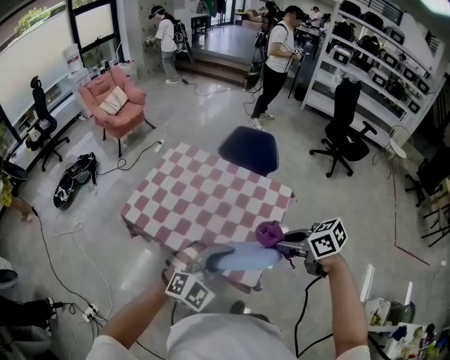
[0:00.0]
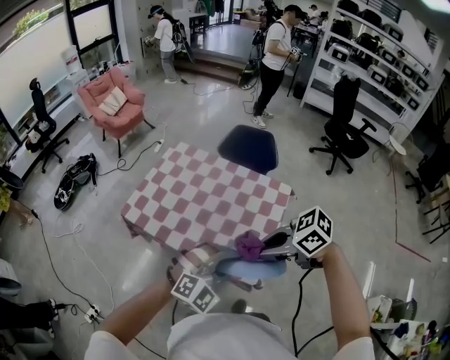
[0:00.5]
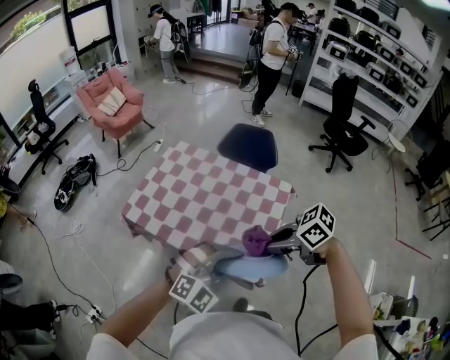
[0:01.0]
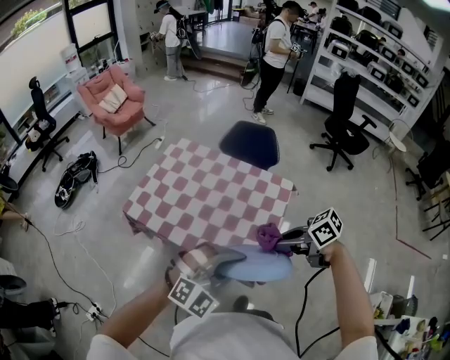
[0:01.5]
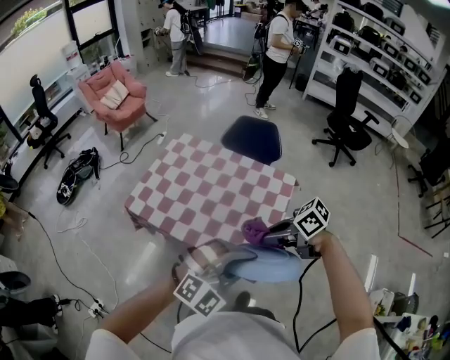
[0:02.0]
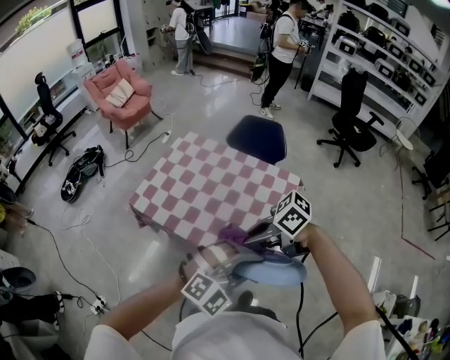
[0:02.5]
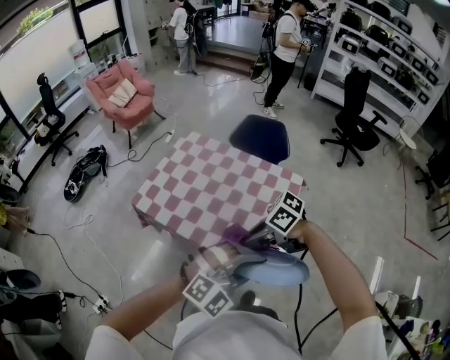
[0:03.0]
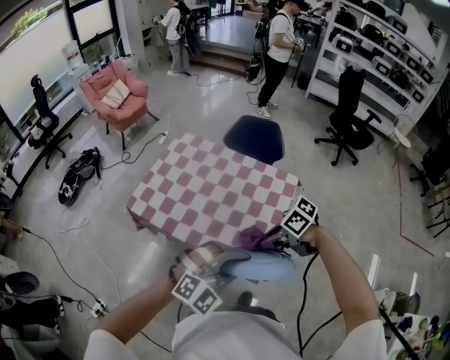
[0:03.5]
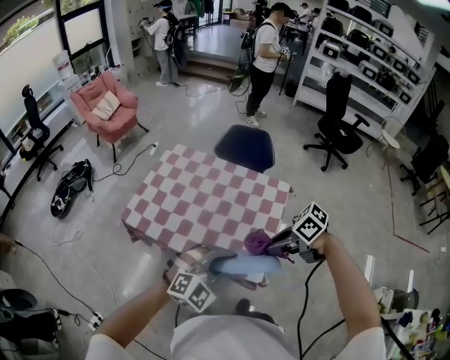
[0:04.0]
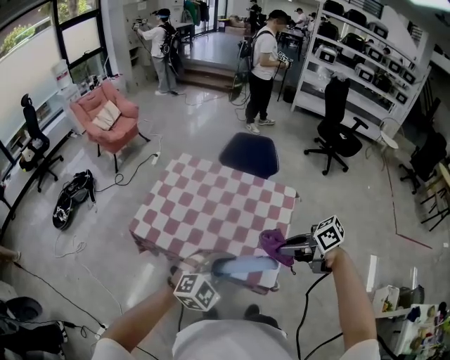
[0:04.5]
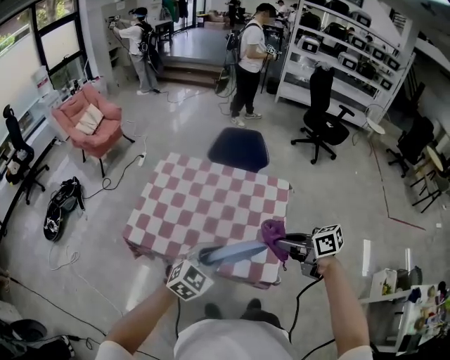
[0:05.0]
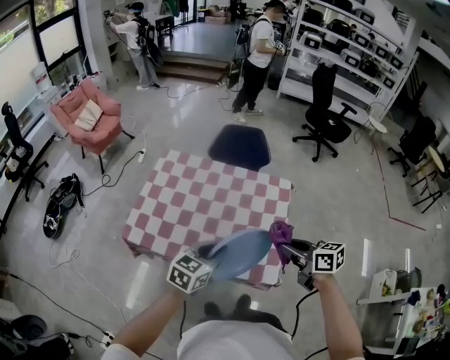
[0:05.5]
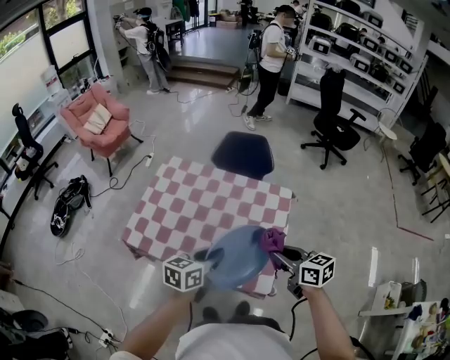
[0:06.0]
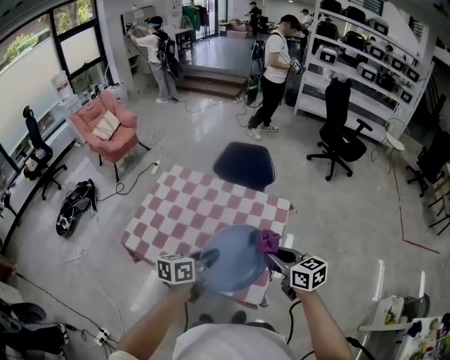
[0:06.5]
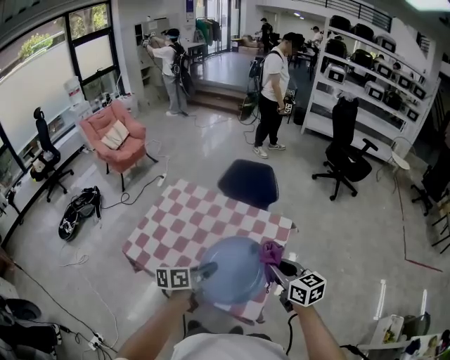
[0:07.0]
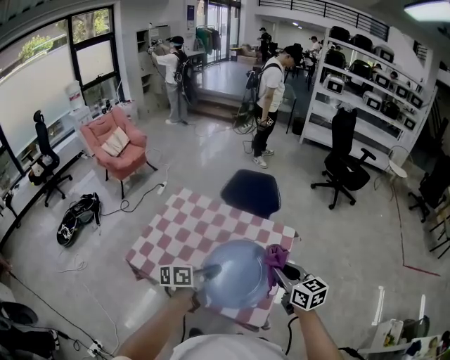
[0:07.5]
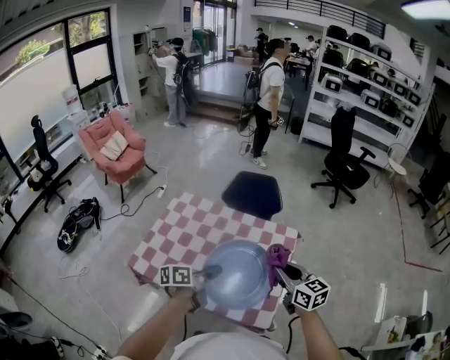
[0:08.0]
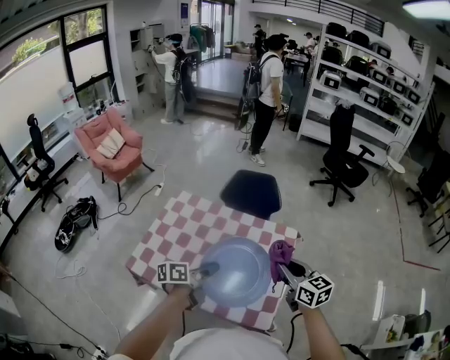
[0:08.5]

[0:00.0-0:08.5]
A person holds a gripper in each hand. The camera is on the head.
0:00.0 to 0:02.0: The right gripper moves some 5 cm, while the left gripper moves approximately 10 cm.
0:02.0 to 0:04.0: The right gripper goes downward and returns, some 5 cm each way. Meanwhile the left gripper ends up roughly 10 cm from where it was.
0:04.0 to 0:06.5: The left gripper ends up some 15 cm from where it was, and twists about 90 degrees counterclockwise, seen from behind. The right gripper shifts by roughly 10 cm, and swivels about 50 degrees.
0:06.5 to 0:08.5: The left gripper shifts about 10 cm to the left and forward, and changes its angle by approximately 20 degrees; the right gripper moves forward, about 5 cm.

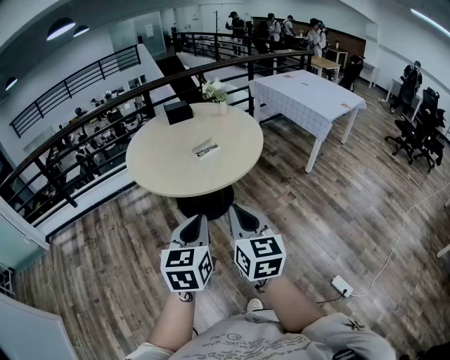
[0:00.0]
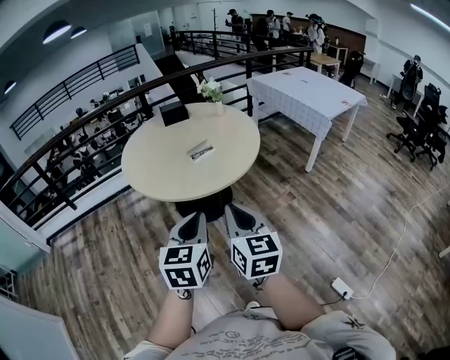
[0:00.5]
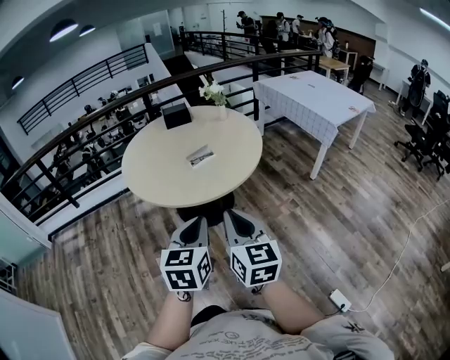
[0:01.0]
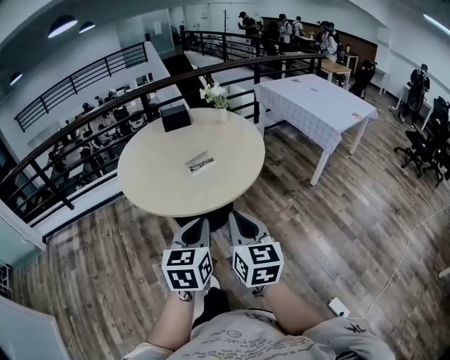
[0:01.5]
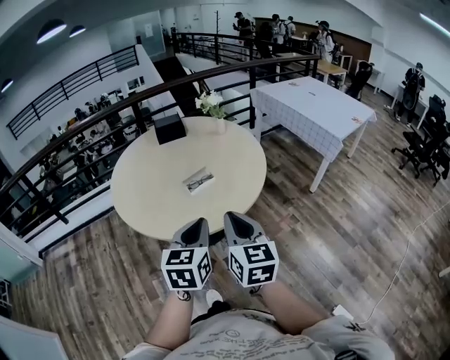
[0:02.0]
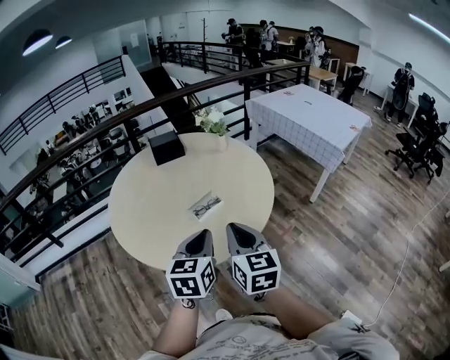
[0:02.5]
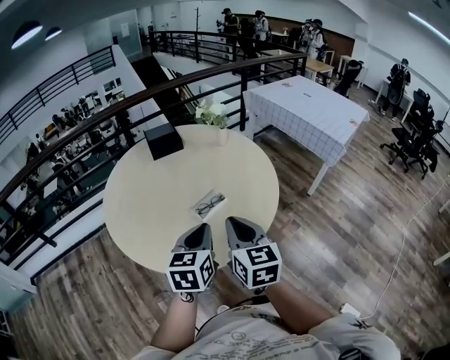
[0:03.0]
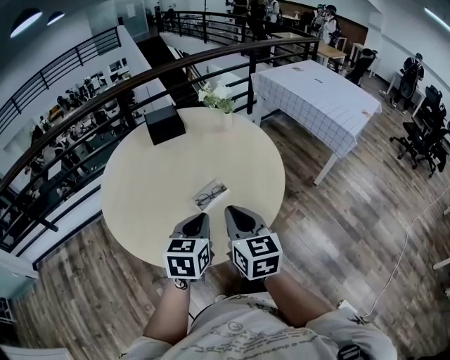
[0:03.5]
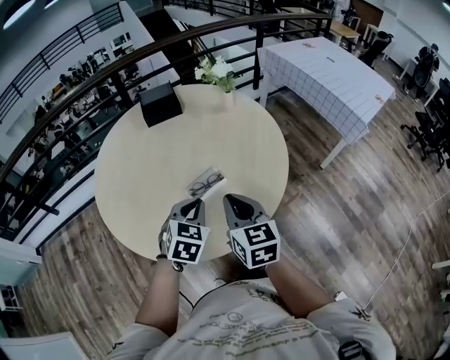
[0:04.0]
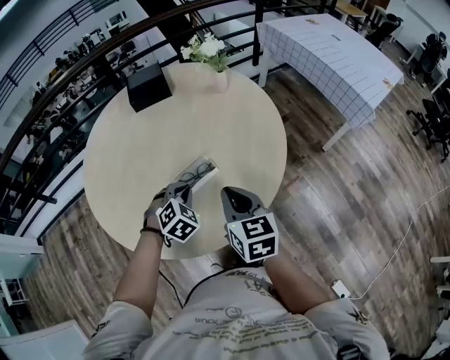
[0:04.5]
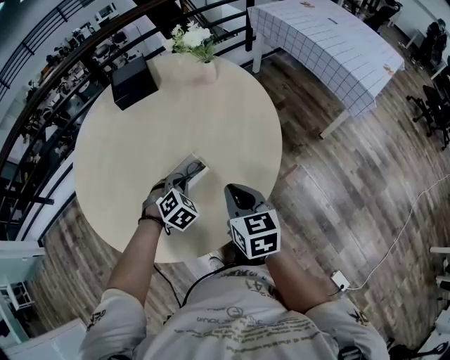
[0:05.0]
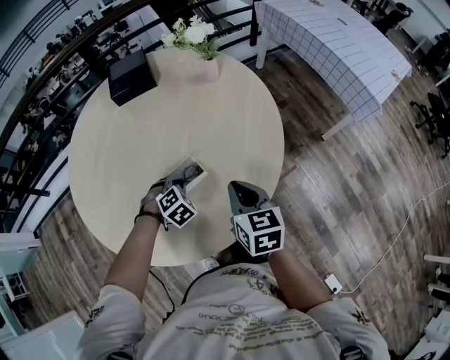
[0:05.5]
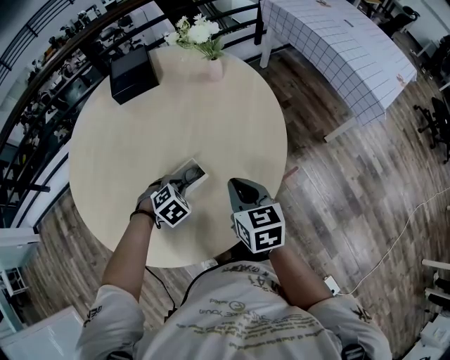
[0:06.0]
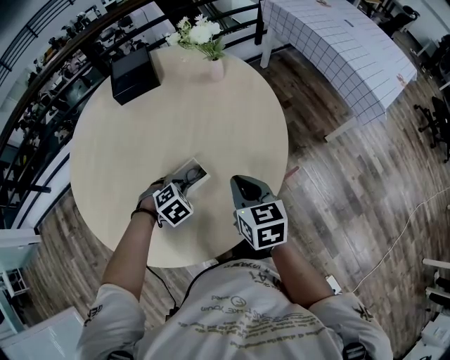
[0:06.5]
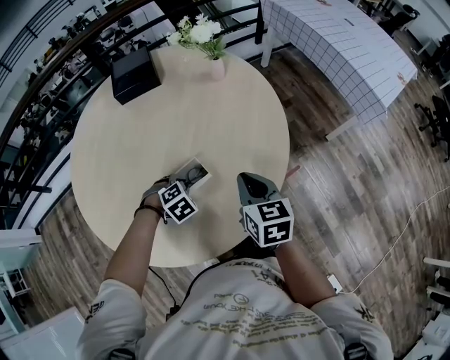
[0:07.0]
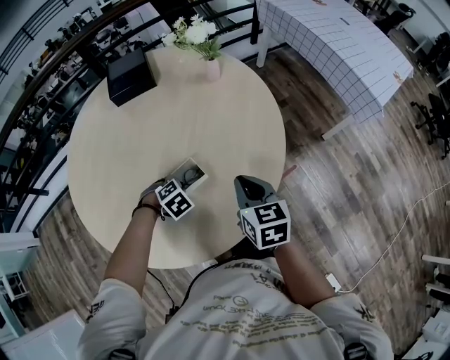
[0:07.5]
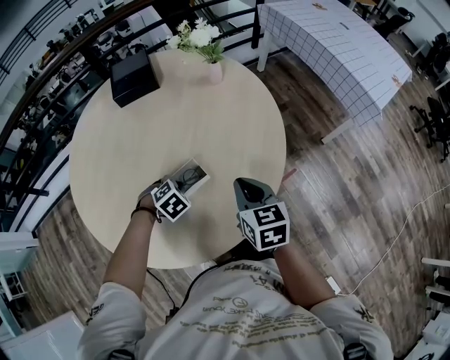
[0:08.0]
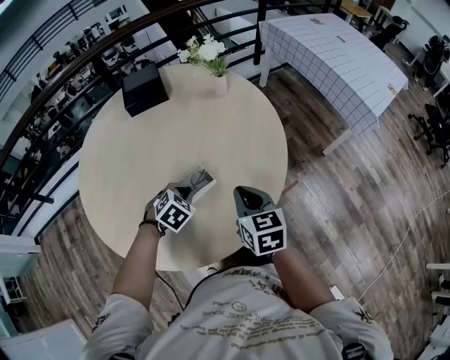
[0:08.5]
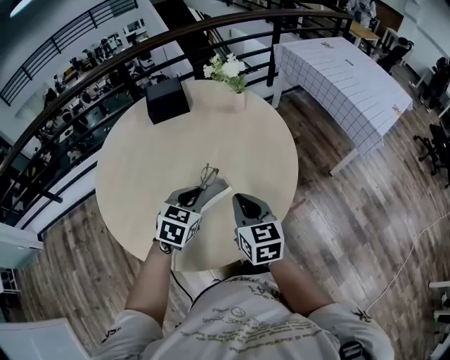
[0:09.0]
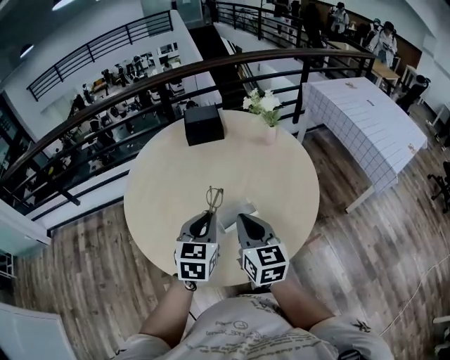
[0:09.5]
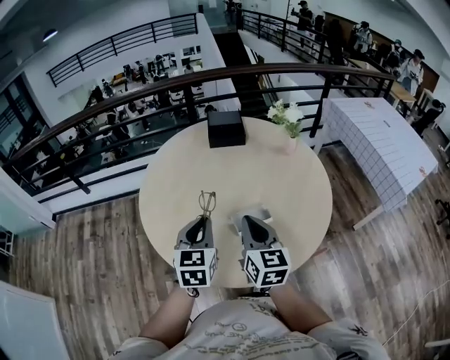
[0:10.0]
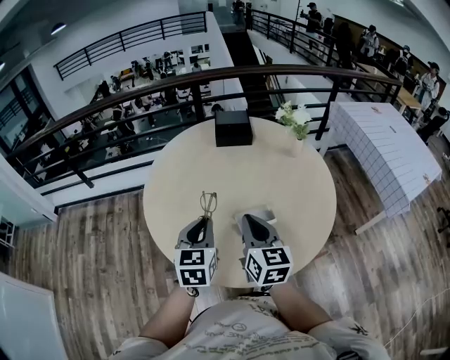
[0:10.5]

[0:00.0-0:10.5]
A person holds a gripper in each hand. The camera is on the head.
0:00.0 to 0:02.0: Both grippers move forward, approximately 25 cm.
0:02.0 to 0:04.0: The two grippers go about 25 cm forward and downward. The left gripper swivels approximately 30 degrees.
0:04.0 to 0:06.5: The right gripper shifts roughly 20 cm forward, downward and to the right. Meanwhile the left gripper goes some 20 cm downward and forward, and tips its fingers downward by approximately 30 degrees.
0:06.5 to 0:08.5: The left gripper is displaced upward by about 5 cm.
0:08.5 to 0:10.5: The left gripper goes about 25 cm upward, to the left and backward, and tips its fingers upward by approximately 40 degrees. The right gripper shifts some 20 cm to the left and upward, and turns by about 20 degrees.

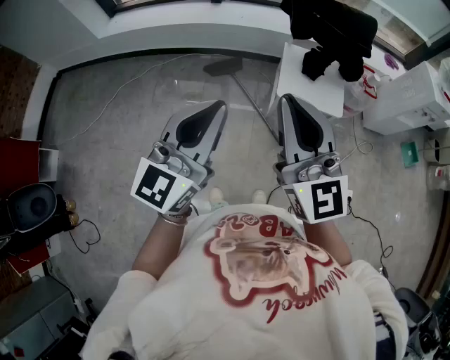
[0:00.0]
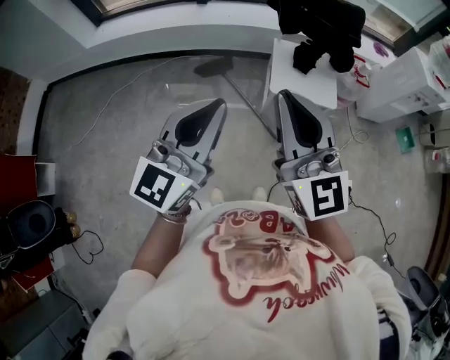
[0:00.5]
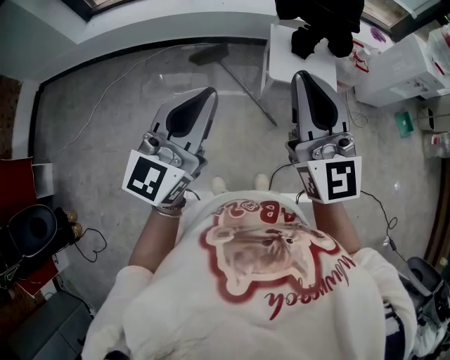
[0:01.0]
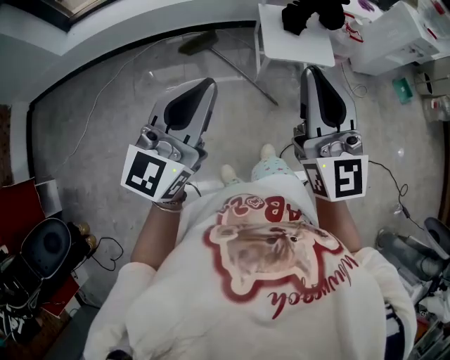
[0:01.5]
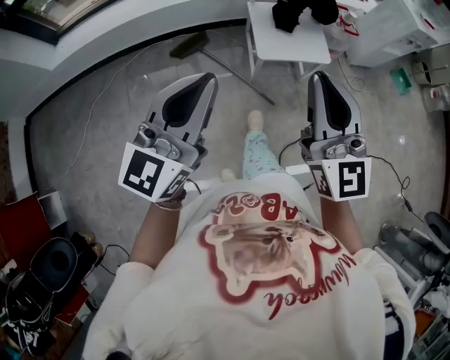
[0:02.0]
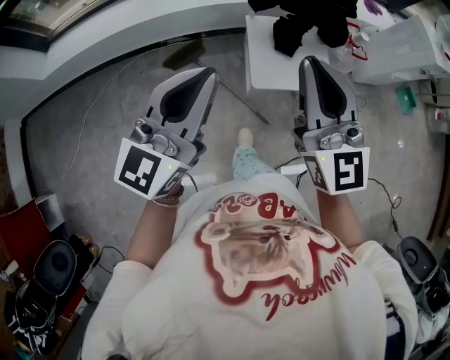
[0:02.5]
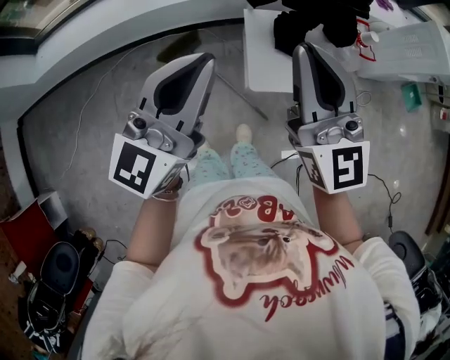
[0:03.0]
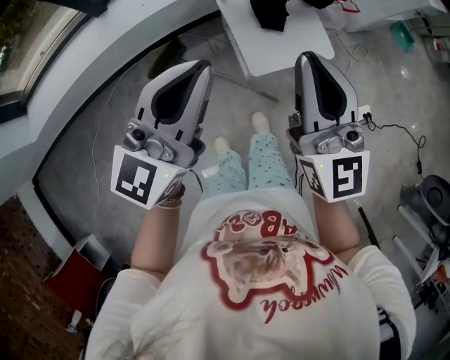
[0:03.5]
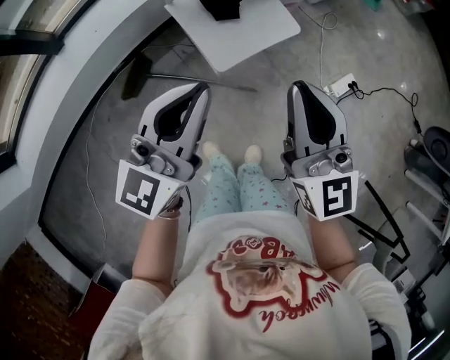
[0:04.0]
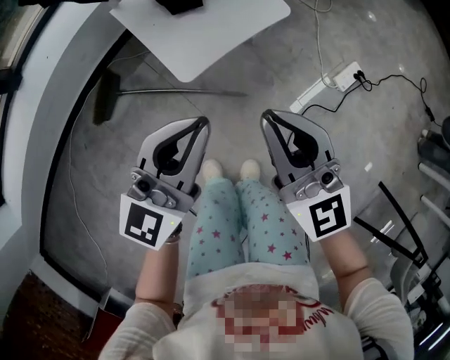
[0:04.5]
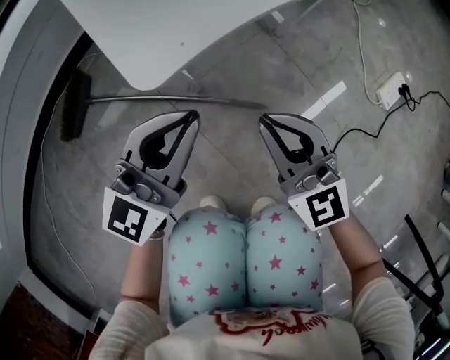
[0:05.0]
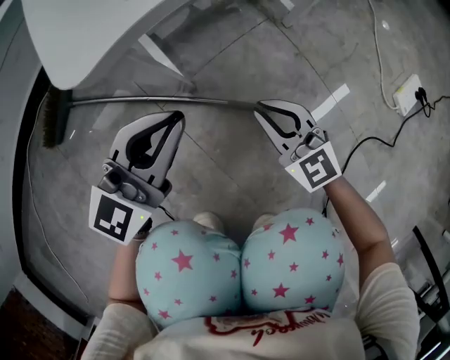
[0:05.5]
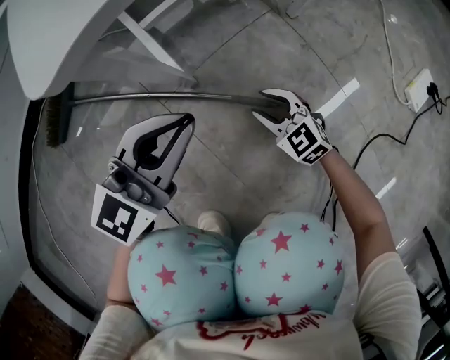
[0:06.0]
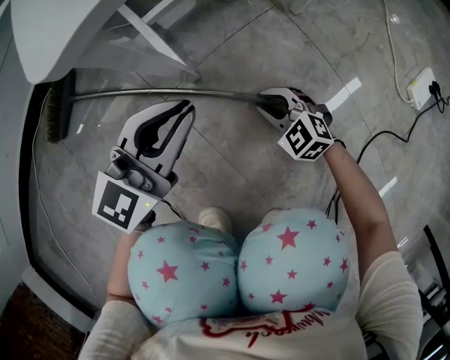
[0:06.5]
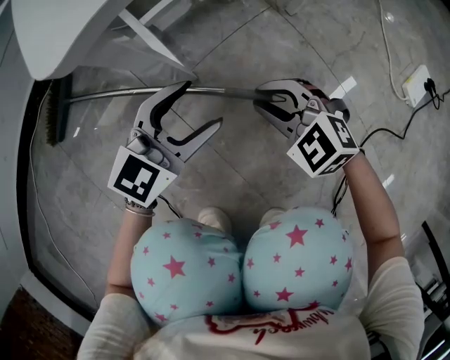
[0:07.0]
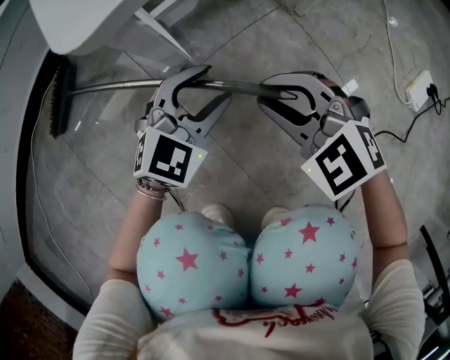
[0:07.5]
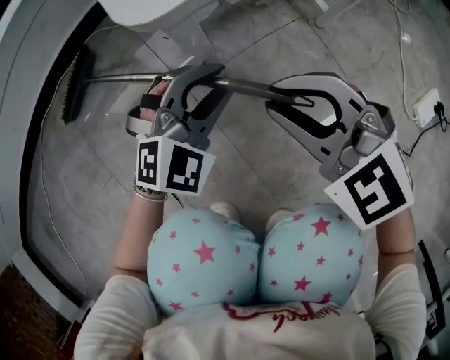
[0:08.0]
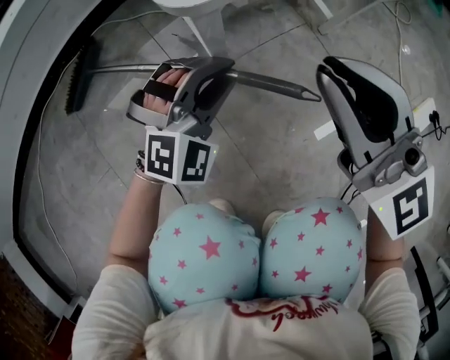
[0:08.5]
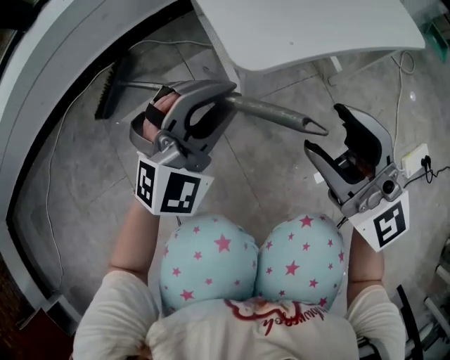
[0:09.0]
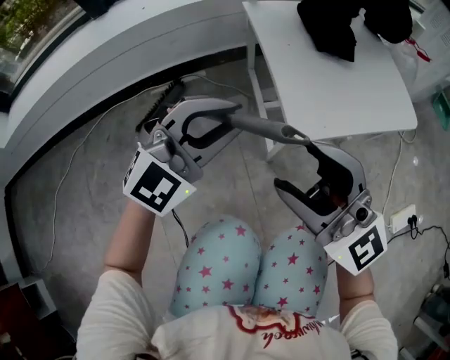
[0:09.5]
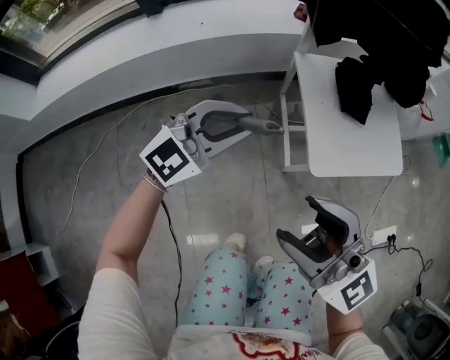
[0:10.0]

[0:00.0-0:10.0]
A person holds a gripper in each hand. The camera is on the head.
0:00.0 to 0:02.0: The left gripper moves forward, about 5 cm. The right gripper goes approximately 5 cm downward, and turns by roughly 20 degrees.
0:02.0 to 0:04.0: The left gripper shifts by approximately 30 cm, and turns by roughly 30 degrees, while the right gripper shifts by some 25 cm, and swivels approximately 30 degrees.
0:04.0 to 0:06.0: The grippers both shift downward by some 70 cm. The right gripper points its fingers approximately 40 degrees further downward, and opens its fingers. The left gripper turns by about 20 degrees.
0:06.0 to 0:08.0: The right gripper is displaced upward by about 25 cm, and swivels about 20 degrees, while the left gripper travels downward by about 5 cm, rotates roughly 40 degrees, and opens its fingers.
0:08.0 to 0:10.0: The left gripper travels upward and to the left by approximately 40 cm, and changes its angle by roughly 30 degrees. The right gripper is displaced upward by some 40 cm, angles its fingers upward, by some 40 degrees, and opens up.
